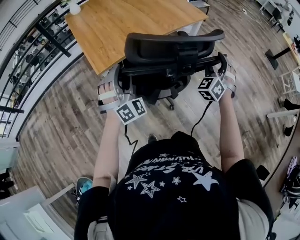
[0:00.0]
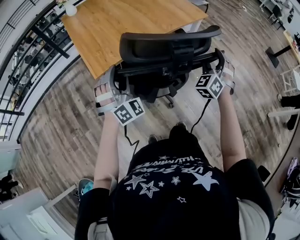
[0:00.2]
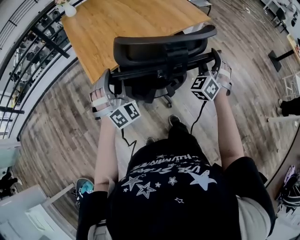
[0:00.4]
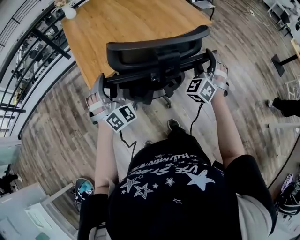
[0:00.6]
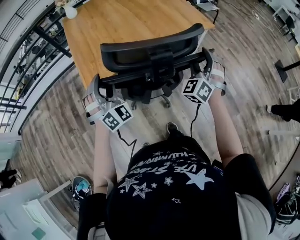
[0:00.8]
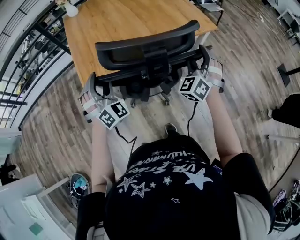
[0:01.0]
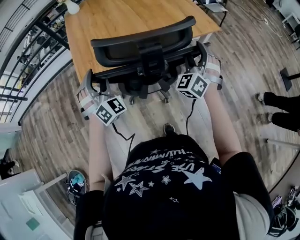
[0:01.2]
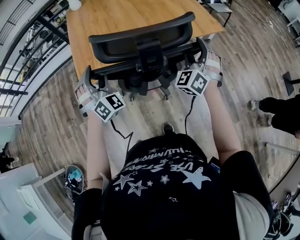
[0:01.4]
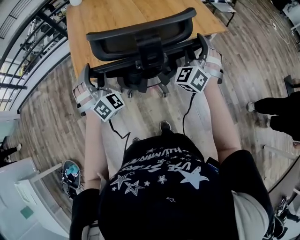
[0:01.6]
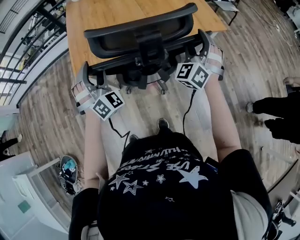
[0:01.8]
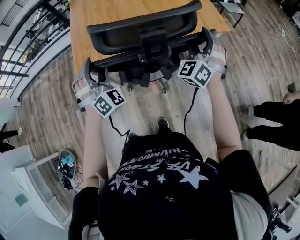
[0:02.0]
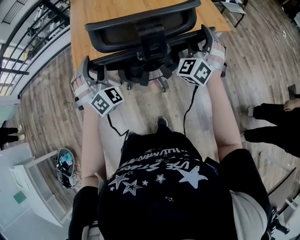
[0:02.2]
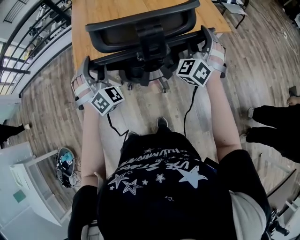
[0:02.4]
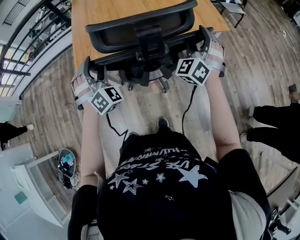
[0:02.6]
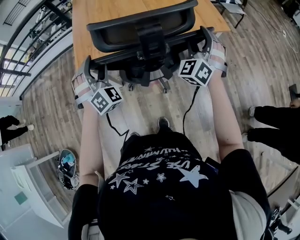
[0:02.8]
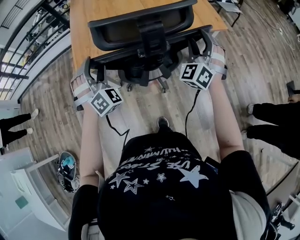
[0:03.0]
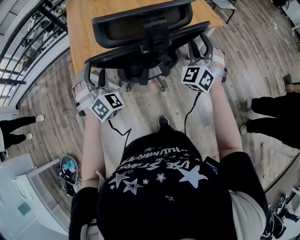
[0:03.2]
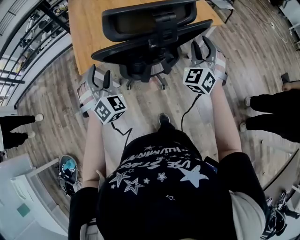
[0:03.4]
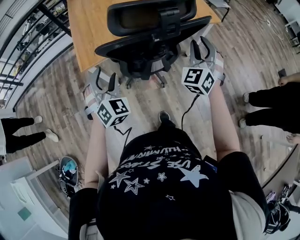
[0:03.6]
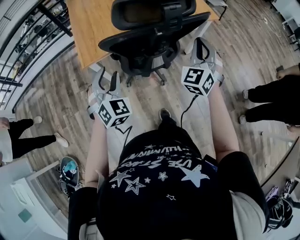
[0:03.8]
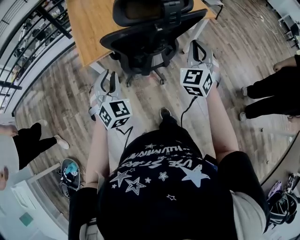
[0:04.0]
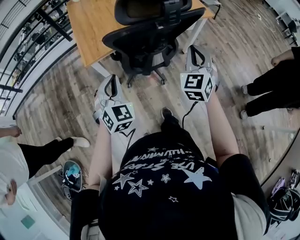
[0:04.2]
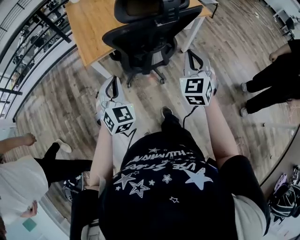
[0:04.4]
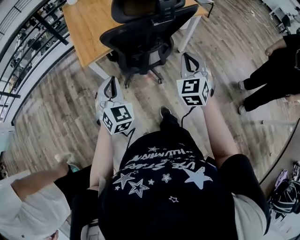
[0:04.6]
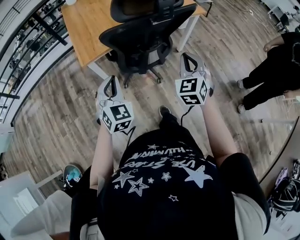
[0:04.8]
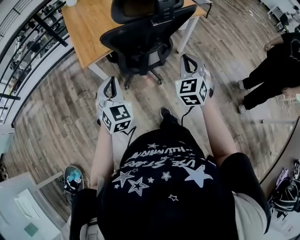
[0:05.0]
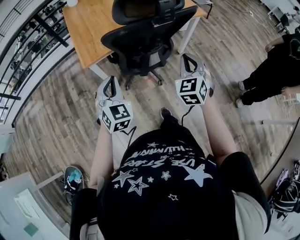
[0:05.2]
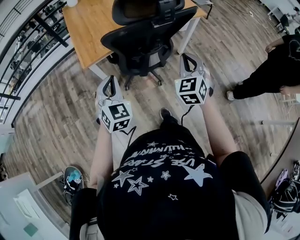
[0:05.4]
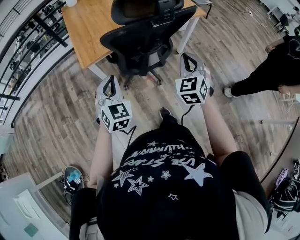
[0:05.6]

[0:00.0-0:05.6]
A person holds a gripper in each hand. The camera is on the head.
0:00.0 to 0:01.4: The two grippers go approximately 25 cm forward. The right gripper changes its angle by approximately 20 degrees. The left gripper changes its angle by roughly 20 degrees.
0:01.4 to 0:02.8: There are only small adjustments of the grippers.
0:02.8 to 0:04.2: The two grippers go approximately 20 cm backward. The right gripper turns by roughly 30 degrees, and closes its fingers. The left gripper turns by about 30 degrees, and closes up.
0:04.2 to 0:05.6: The right gripper shifts by approximately 5 cm.

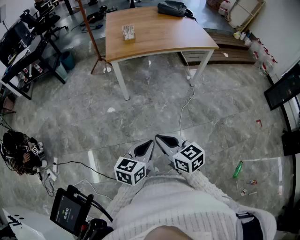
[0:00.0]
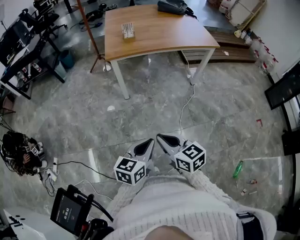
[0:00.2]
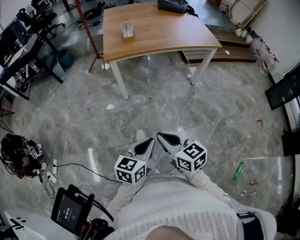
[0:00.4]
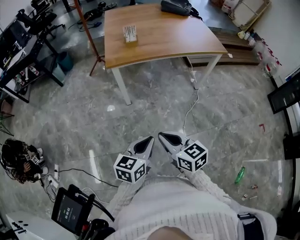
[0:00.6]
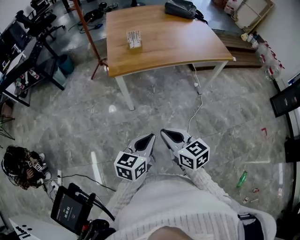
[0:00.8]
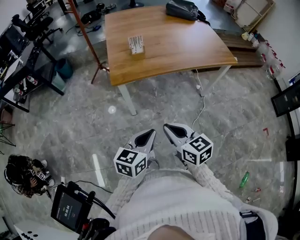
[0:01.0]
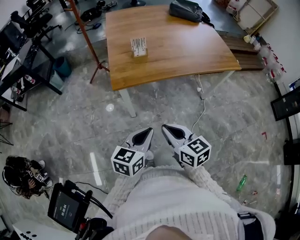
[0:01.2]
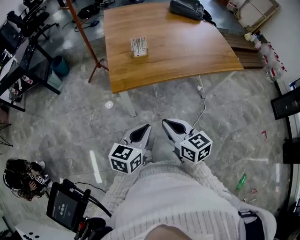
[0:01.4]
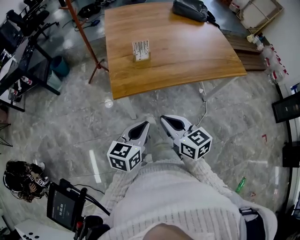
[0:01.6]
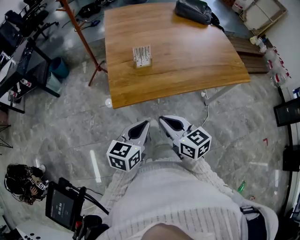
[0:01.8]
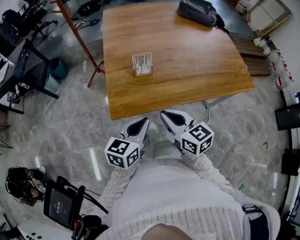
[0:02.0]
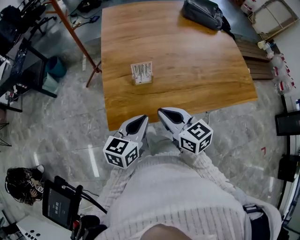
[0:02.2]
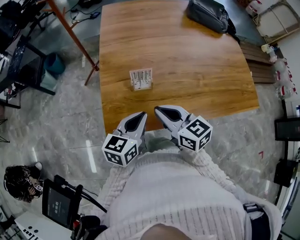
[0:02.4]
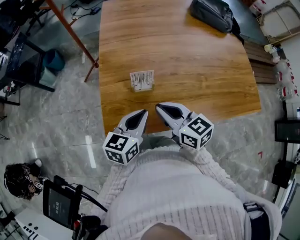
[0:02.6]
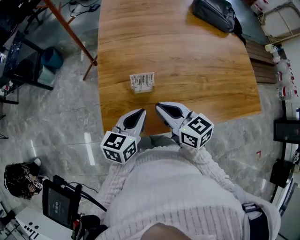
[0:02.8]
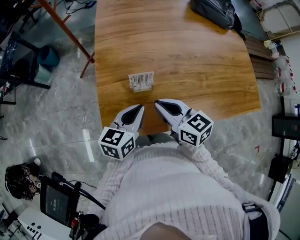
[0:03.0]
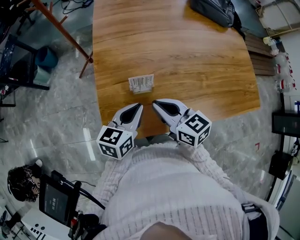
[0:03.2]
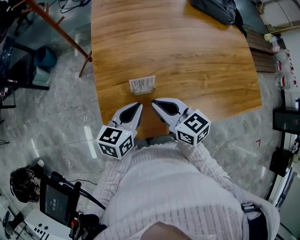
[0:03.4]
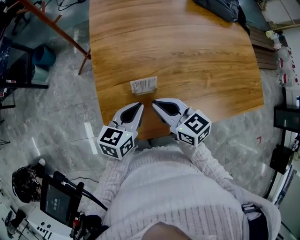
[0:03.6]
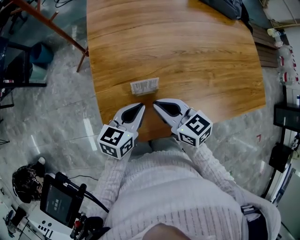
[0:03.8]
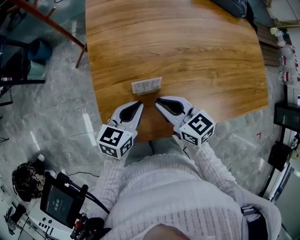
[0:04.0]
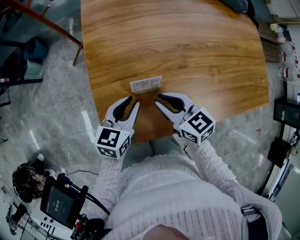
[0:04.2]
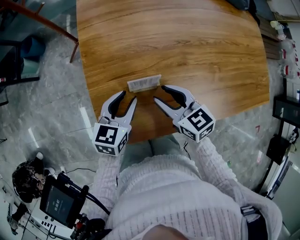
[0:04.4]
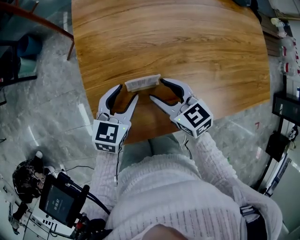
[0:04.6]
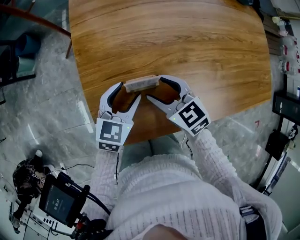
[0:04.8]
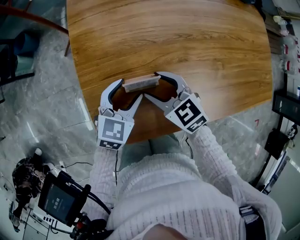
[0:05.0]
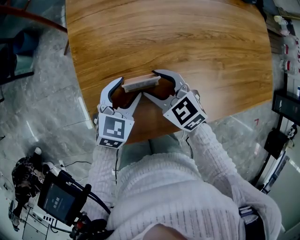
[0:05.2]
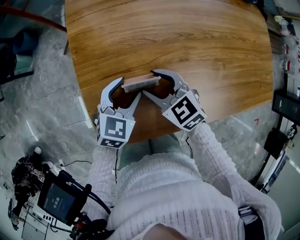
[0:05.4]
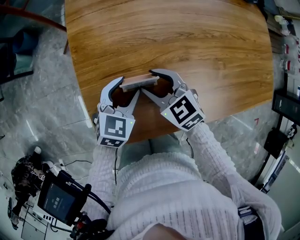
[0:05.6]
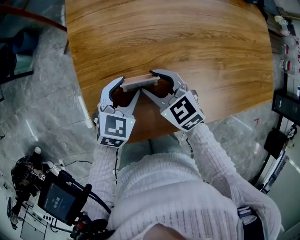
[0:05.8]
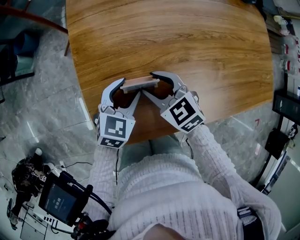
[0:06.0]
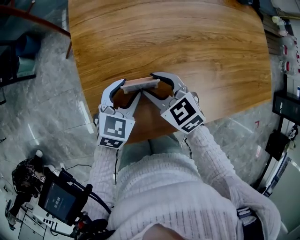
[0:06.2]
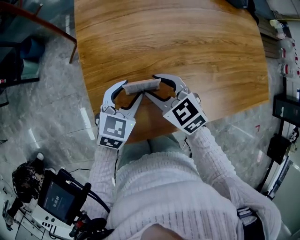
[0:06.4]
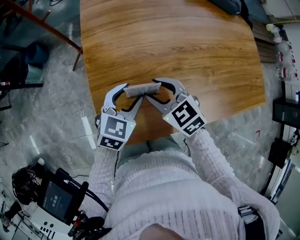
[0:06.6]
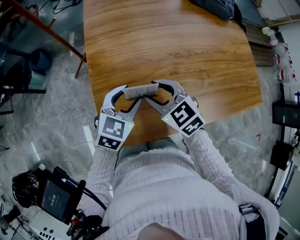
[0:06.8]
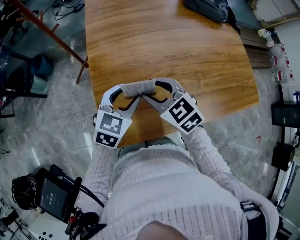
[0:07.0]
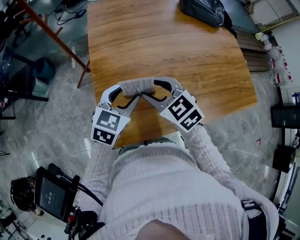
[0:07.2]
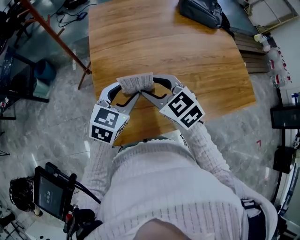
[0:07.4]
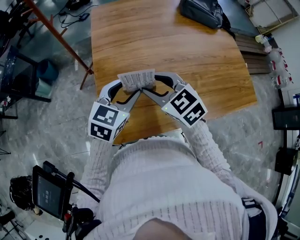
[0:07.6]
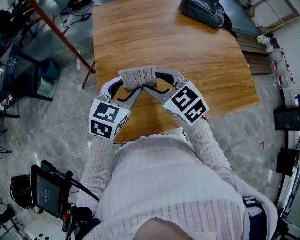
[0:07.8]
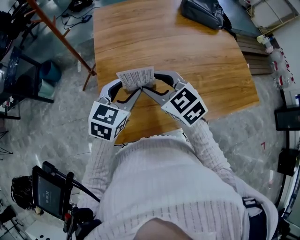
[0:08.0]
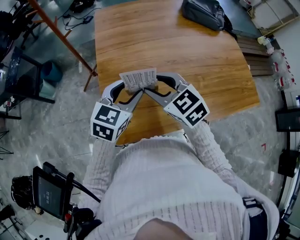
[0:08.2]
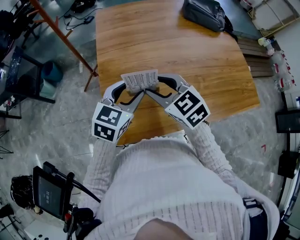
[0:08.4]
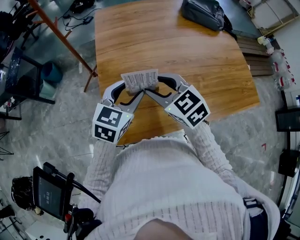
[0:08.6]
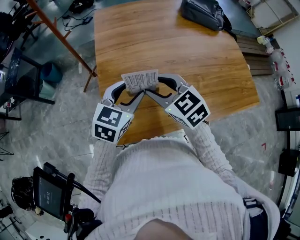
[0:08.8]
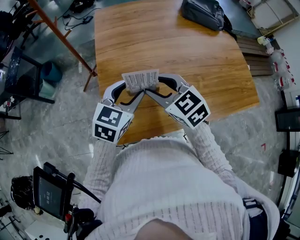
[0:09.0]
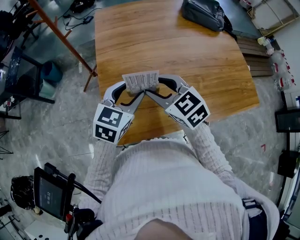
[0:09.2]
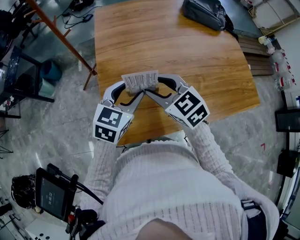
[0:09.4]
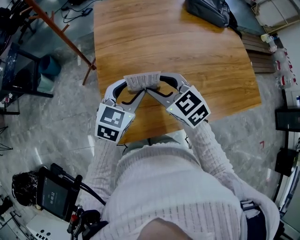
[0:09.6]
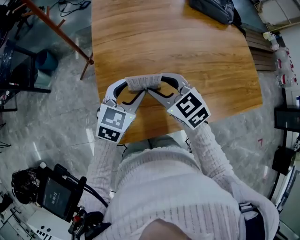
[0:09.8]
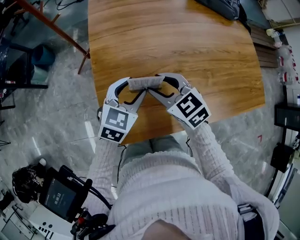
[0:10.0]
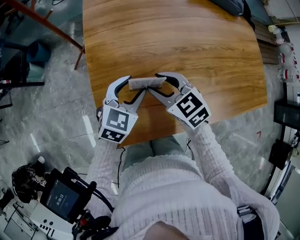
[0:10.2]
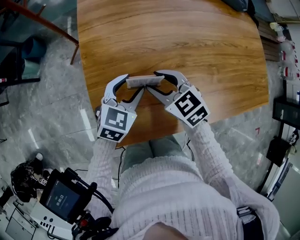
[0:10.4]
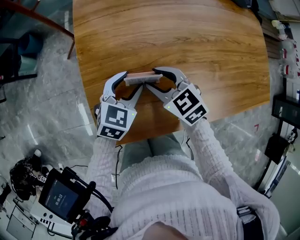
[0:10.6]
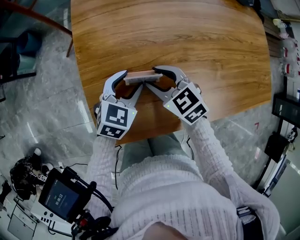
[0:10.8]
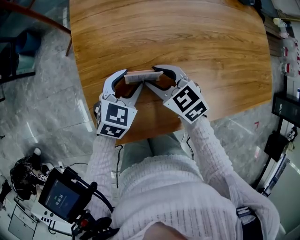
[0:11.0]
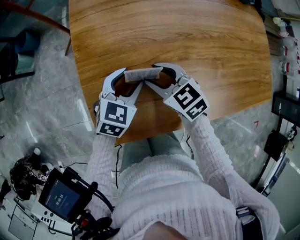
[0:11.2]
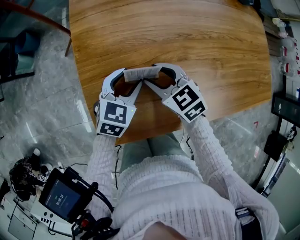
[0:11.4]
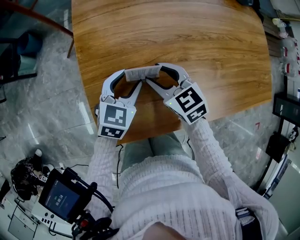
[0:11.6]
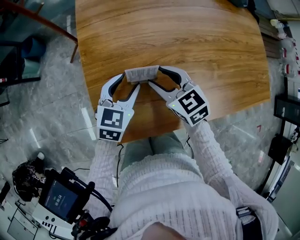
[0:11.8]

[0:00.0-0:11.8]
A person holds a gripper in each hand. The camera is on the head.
0:00.0 to 0:01.4: The grippers both shift forward by about 40 cm.
0:01.4 to 0:03.0: Both grippers move forward, some 40 cm.
0:03.0 to 0:04.4: The left gripper travels downward and forward by about 10 cm, and opens its fingers. The right gripper travels downward by some 10 cm, and opens.
0:04.4 to 0:06.0: The right gripper shifts by roughly 5 cm, and turns by roughly 20 degrees, while the left gripper rotates some 20 degrees.
0:06.0 to 0:07.4: Both grippers move upward, about 15 cm.
0:07.4 to 0:08.8: Both grippers stay put.
0:08.8 to 0:10.4: The grippers both shift downward and forward by approximately 15 cm.
0:10.4 to 0:11.8: The grippers make only small movements.

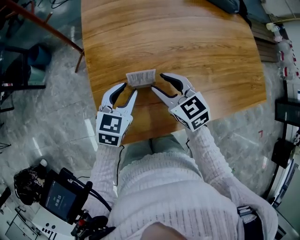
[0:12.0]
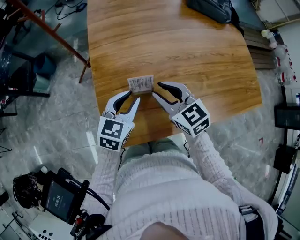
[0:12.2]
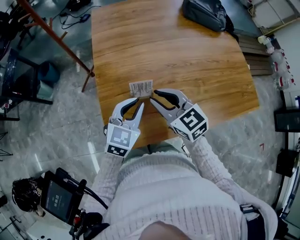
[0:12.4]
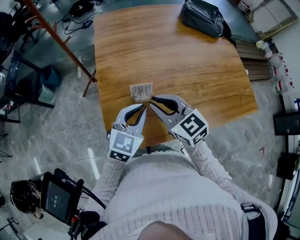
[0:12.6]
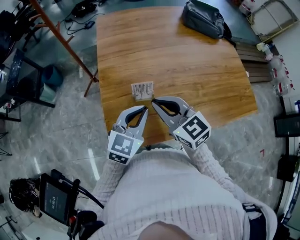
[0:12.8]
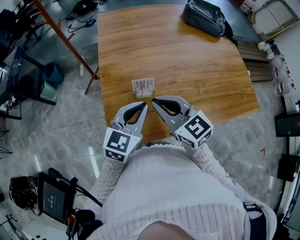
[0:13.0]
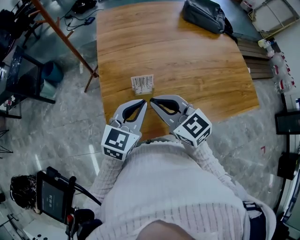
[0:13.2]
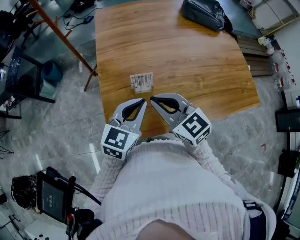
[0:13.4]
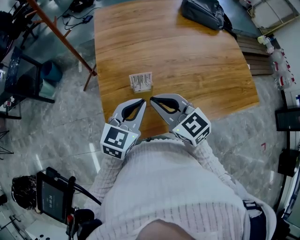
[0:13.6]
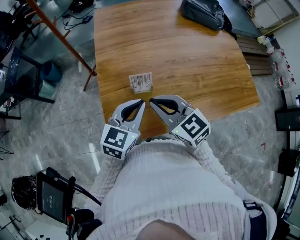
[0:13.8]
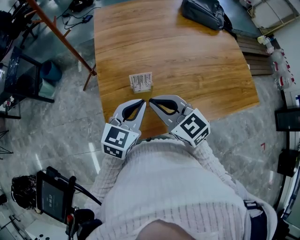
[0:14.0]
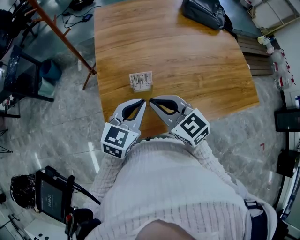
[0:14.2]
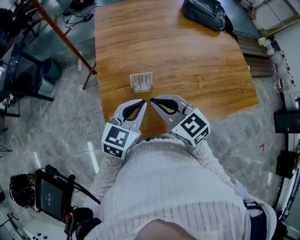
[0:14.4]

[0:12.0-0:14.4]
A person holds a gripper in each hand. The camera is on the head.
0:12.0 to 0:13.2: Both grippers travel together upward and backward, roughly 15 cm. The left gripper closes its fingers. The right gripper closes.
0:13.2 to 0:14.4: The grippers stay close to where they were, moving slightly.

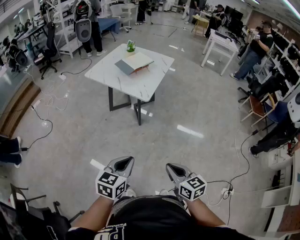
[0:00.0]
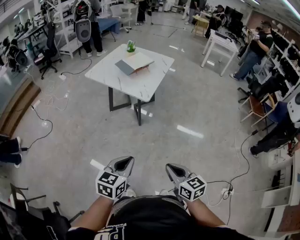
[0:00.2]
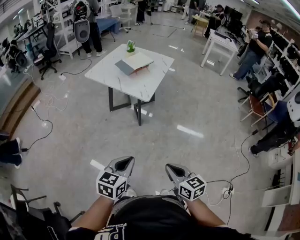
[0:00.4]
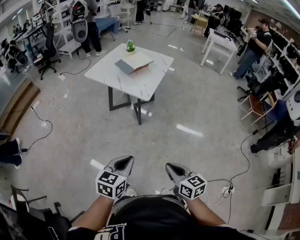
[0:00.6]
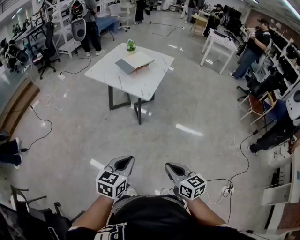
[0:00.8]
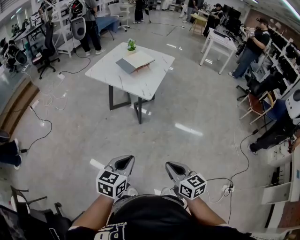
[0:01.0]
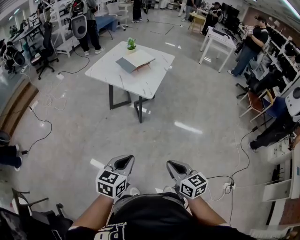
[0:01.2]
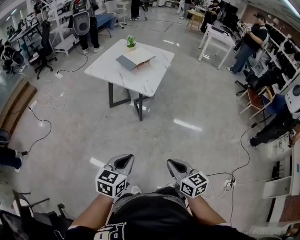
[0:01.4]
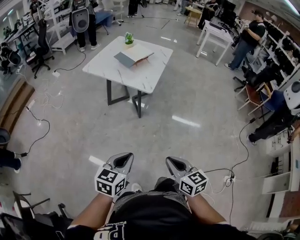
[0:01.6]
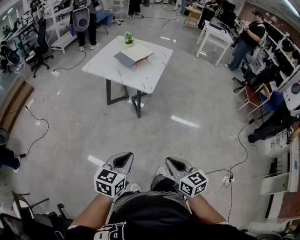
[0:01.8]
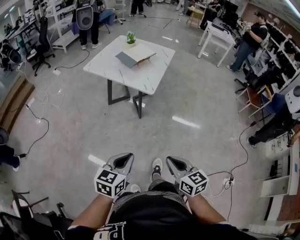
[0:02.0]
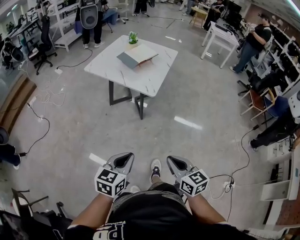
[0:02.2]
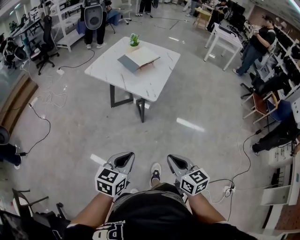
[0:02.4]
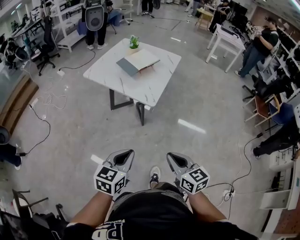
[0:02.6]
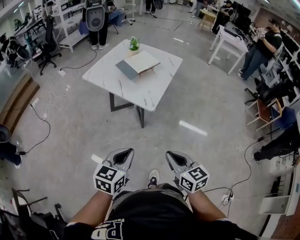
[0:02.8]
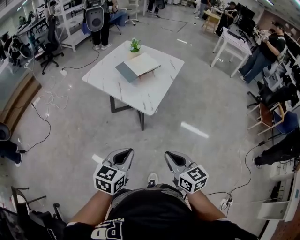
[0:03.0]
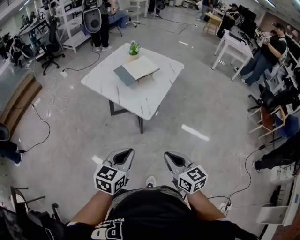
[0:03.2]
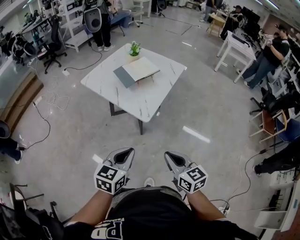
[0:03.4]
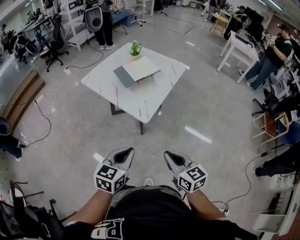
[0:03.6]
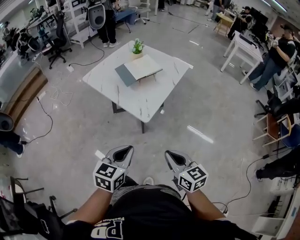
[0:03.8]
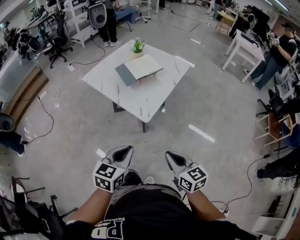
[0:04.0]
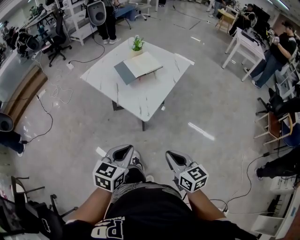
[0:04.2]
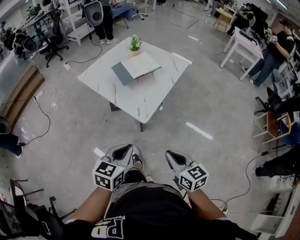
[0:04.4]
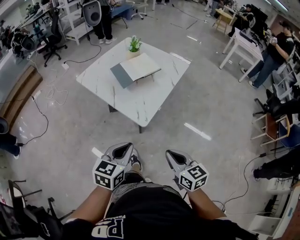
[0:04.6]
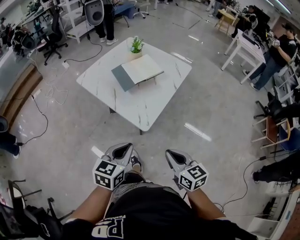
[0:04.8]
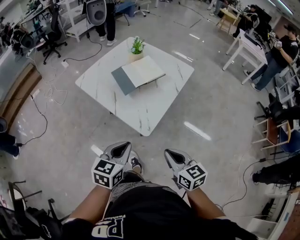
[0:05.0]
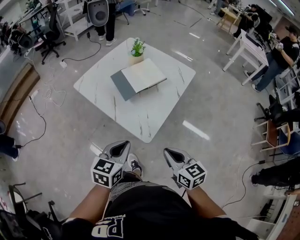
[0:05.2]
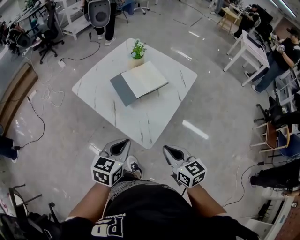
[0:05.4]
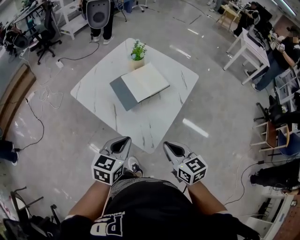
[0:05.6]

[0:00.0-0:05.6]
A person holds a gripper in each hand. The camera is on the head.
0:00.0 to 0:01.4: The two grippers go about 5 cm to the left.
0:01.4 to 0:02.8: Both grippers move forward, roughly 20 cm.
0:02.8 to 0:04.2: The grippers both shift forward and to the right by roughly 15 cm.
0:04.2 to 0:05.6: Both grippers move forward, roughly 25 cm.
